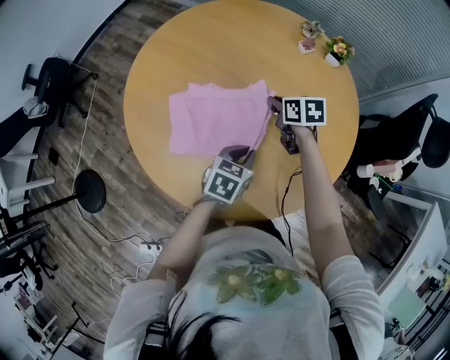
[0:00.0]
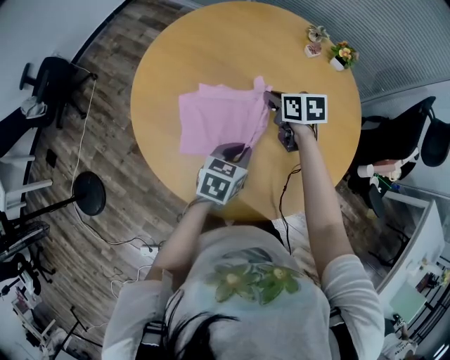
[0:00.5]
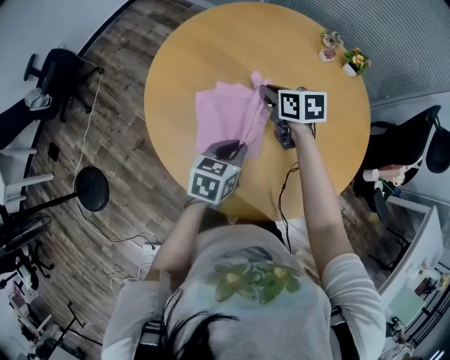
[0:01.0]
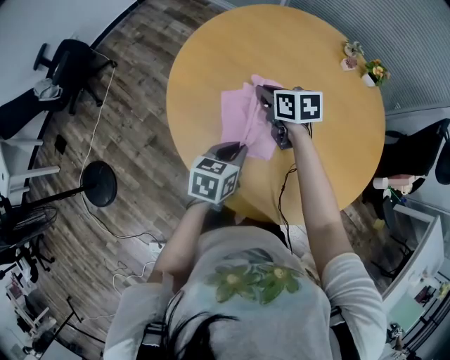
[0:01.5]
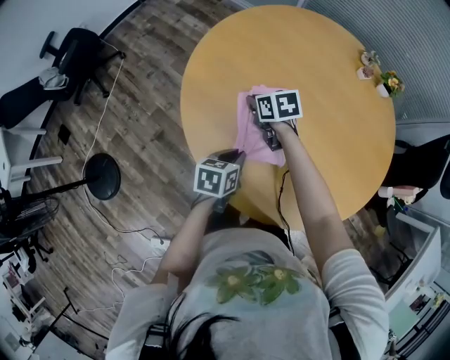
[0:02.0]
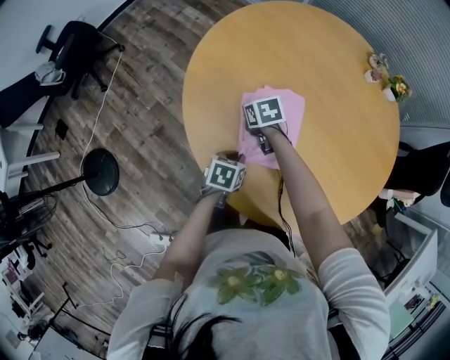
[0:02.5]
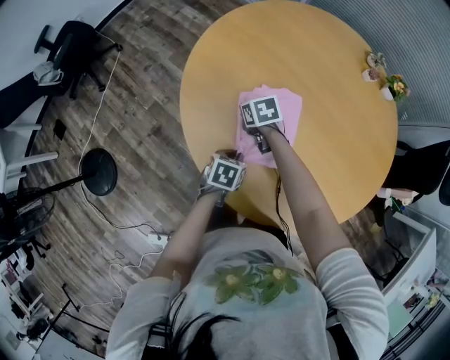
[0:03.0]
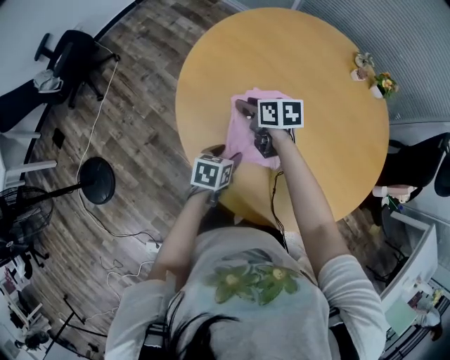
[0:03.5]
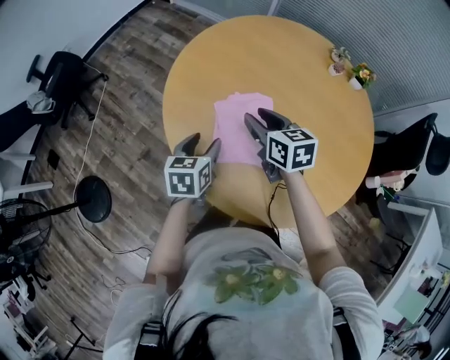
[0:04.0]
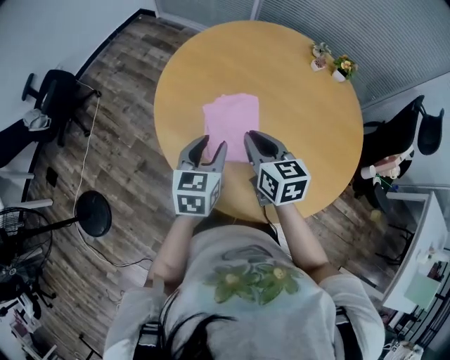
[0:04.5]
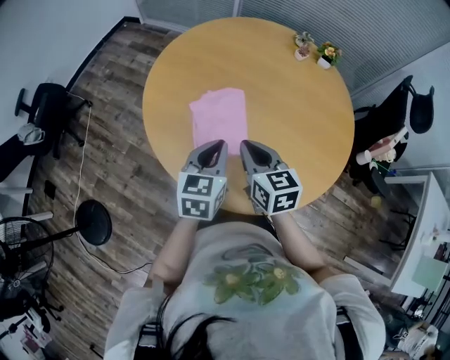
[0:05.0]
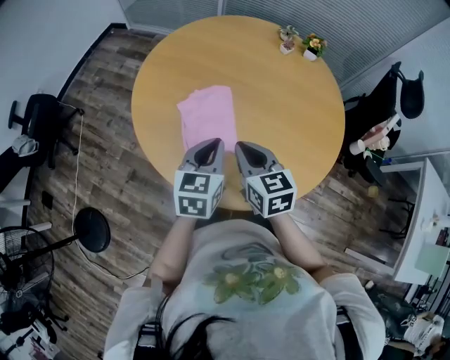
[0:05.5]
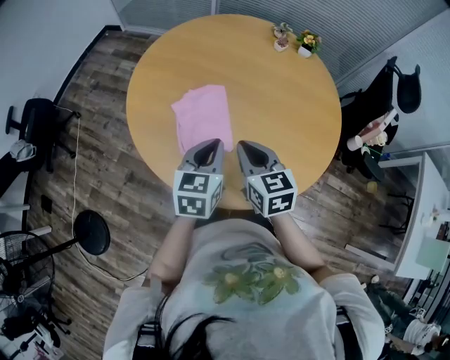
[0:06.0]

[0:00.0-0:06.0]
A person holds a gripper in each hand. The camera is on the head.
0.0 to 2.0 s: The two grippers go roughly 30 cm to the left. The left gripper swivels approximately 20 degrees.
2.0 to 4.0 s: The right gripper travels upward, backward and to the right by roughly 15 cm, rotates roughly 20 degrees, and opens up. The left gripper travels upward by approximately 10 cm, and opens up.
4.0 to 6.0 s: The right gripper is displaced backward and to the right by roughly 15 cm, and closes up. The left gripper goes roughly 15 cm to the right, upward and backward, rotates some 20 degrees, and closes its fingers.

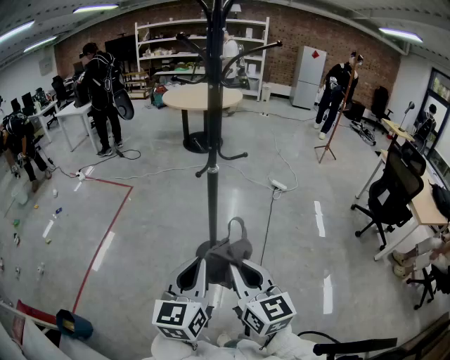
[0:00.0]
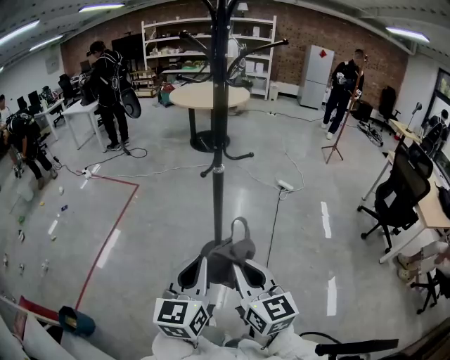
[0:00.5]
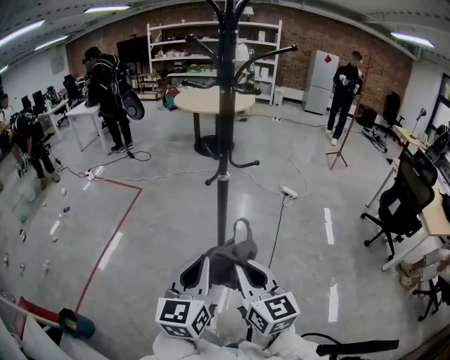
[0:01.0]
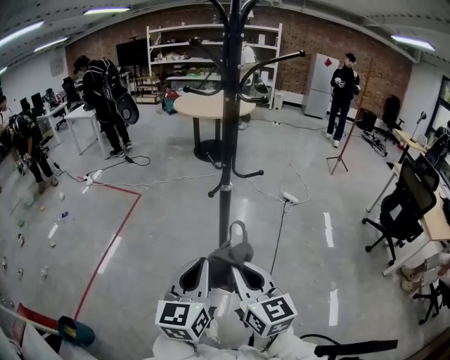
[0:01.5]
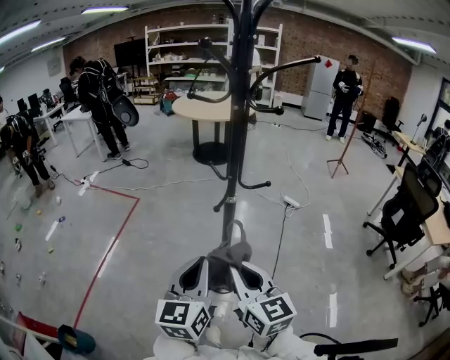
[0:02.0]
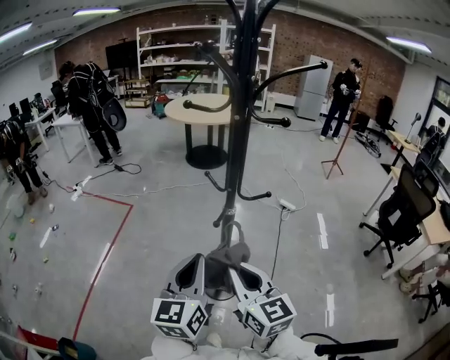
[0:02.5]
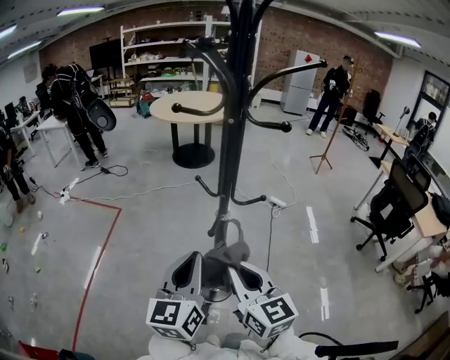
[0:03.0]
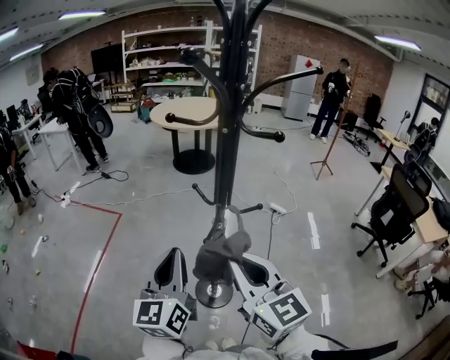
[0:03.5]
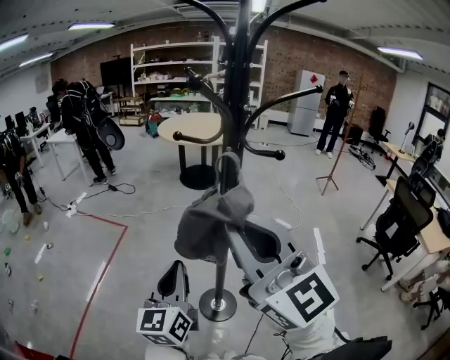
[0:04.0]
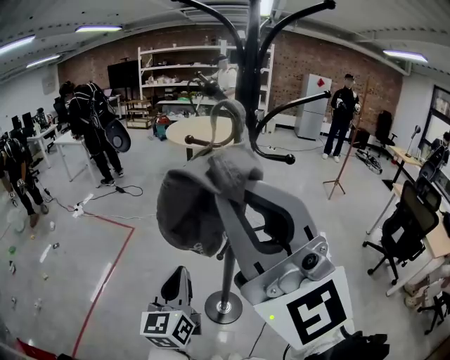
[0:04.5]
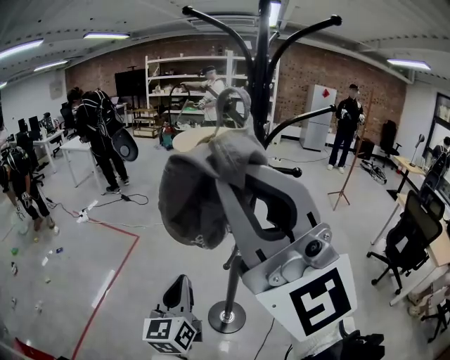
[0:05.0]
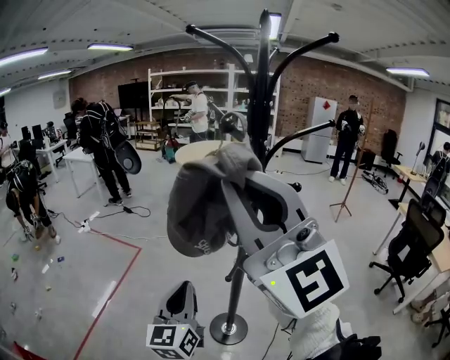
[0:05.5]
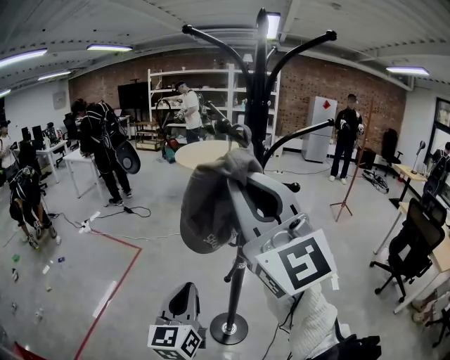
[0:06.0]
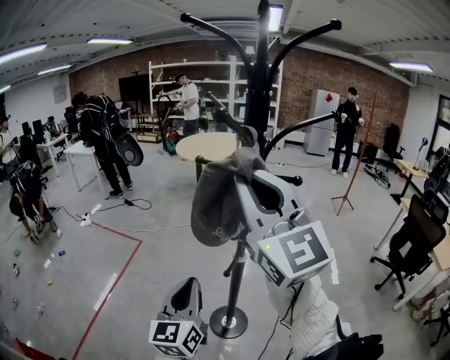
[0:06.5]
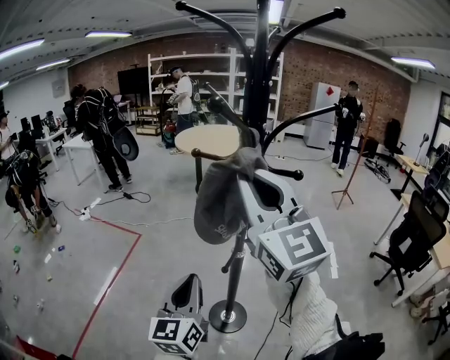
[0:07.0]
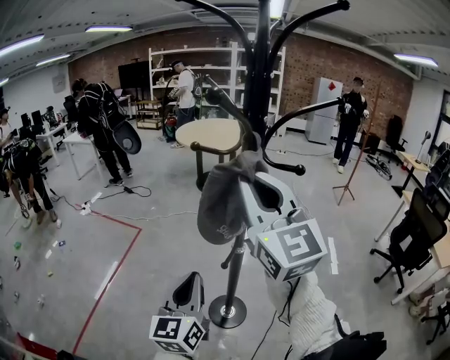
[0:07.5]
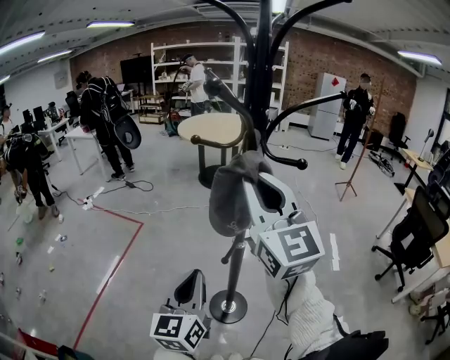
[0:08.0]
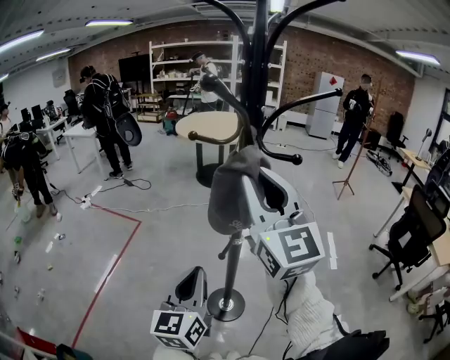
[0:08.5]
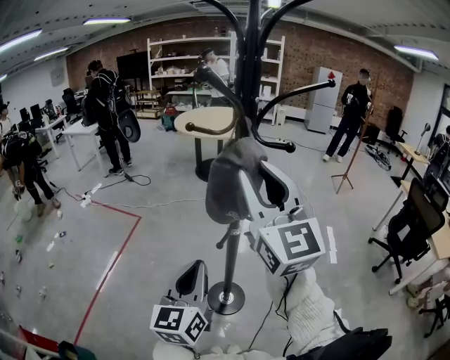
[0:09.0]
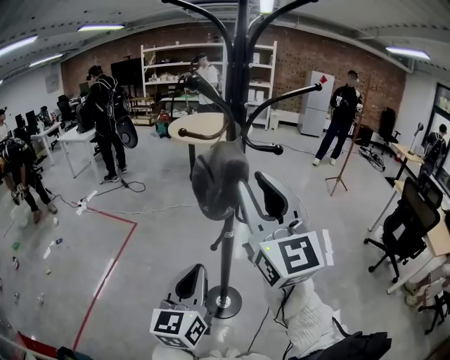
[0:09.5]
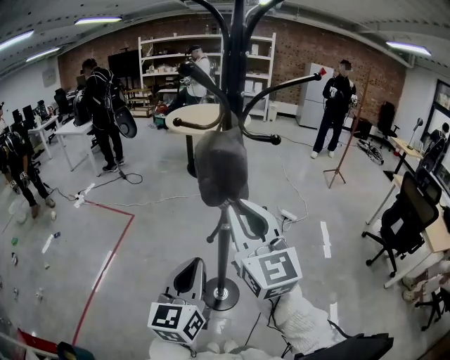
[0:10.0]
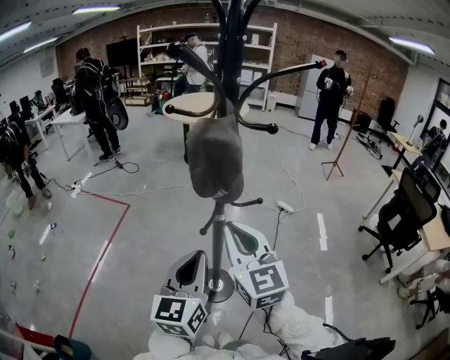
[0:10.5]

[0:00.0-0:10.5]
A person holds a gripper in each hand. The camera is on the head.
0.0 to 2.0 s: The grippers both shift forward by approximately 15 cm.
2.0 to 4.0 s: The right gripper heads upward, covering approximately 25 cm, and changes its angle by roughly 30 degrees. The left gripper shifts about 10 cm forward.
4.0 to 6.5 s: The right gripper shifts some 10 cm forward and upward.
6.5 to 8.5 s: The right gripper heads downward, covering approximately 5 cm.
8.5 to 10.5 s: The left gripper moves to the right, some 5 cm; the right gripper moves downward, about 15 cm.

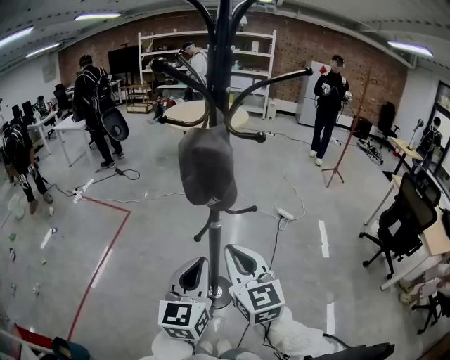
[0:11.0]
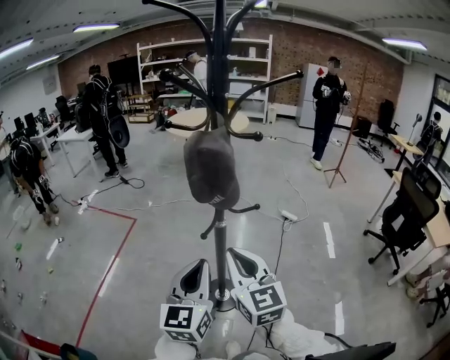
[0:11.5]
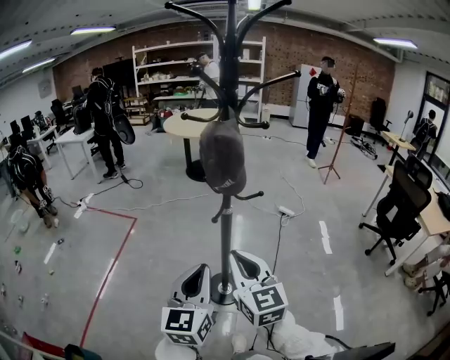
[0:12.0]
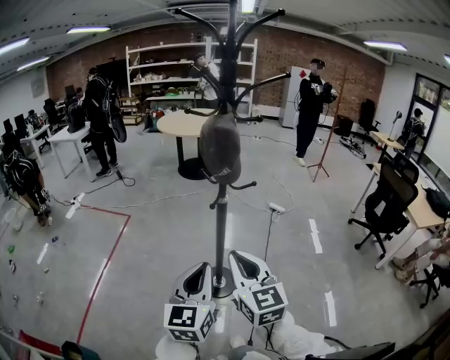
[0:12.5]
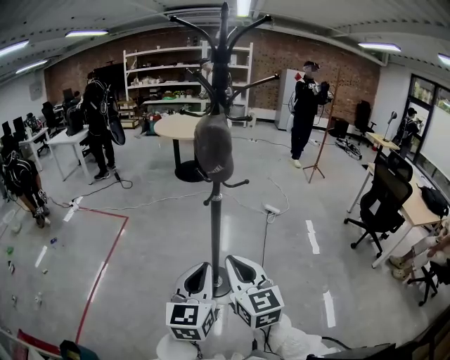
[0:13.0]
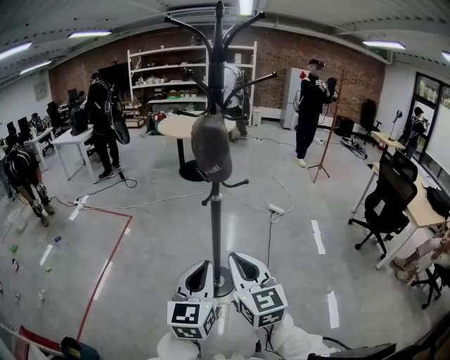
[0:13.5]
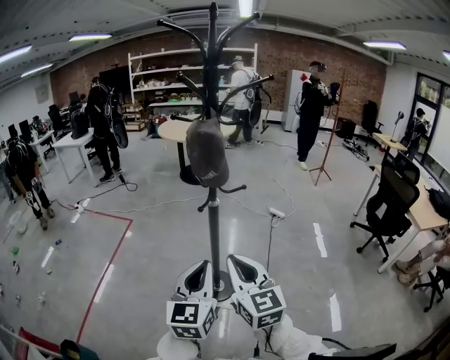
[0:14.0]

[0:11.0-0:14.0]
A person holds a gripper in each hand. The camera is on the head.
11.0 to 12.5 s: The two grippers go approximately 15 cm backward.
12.5 to 14.0 s: The grippers stay close to where they were, moving slightly.

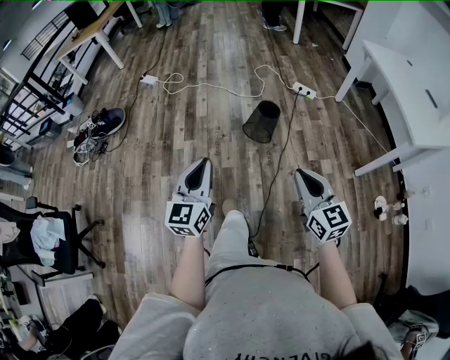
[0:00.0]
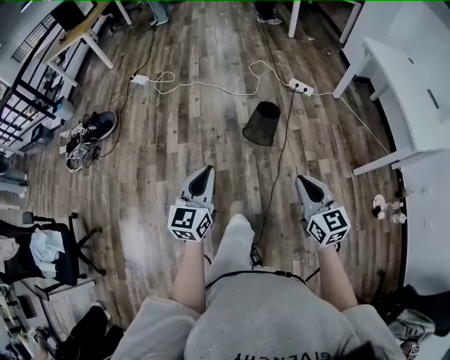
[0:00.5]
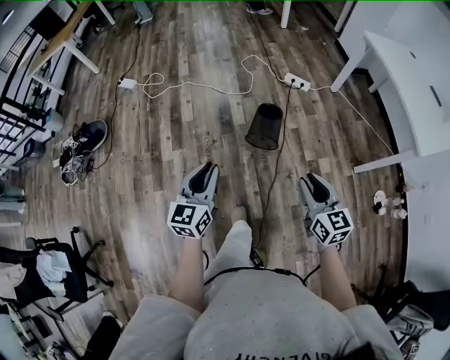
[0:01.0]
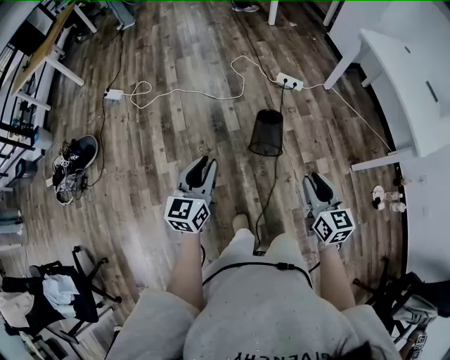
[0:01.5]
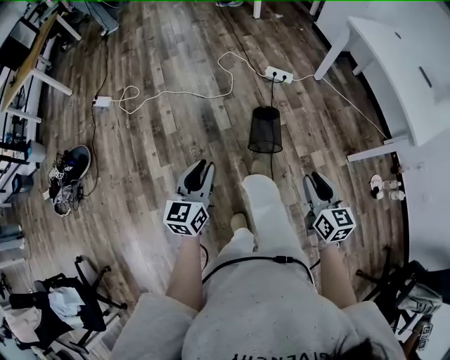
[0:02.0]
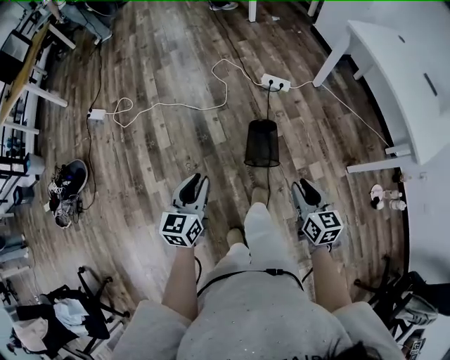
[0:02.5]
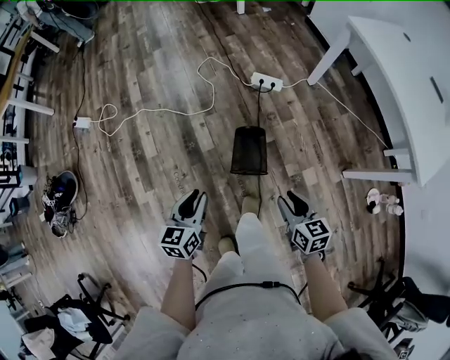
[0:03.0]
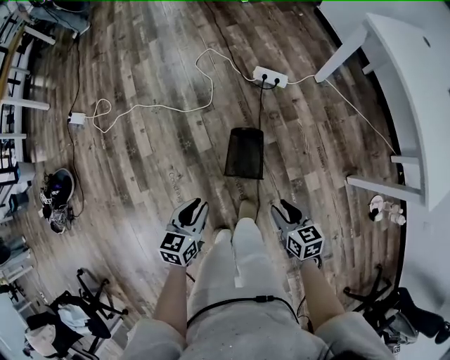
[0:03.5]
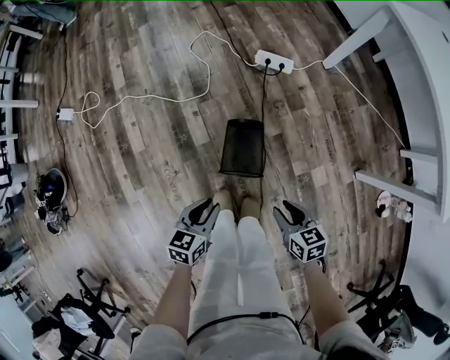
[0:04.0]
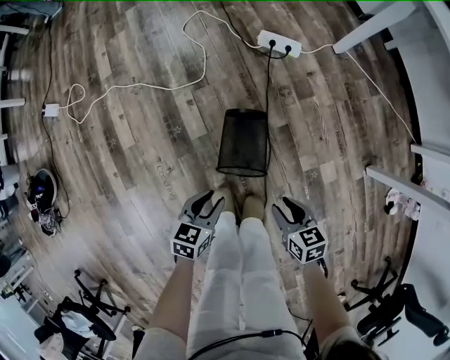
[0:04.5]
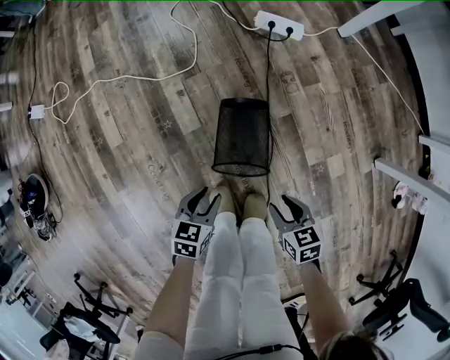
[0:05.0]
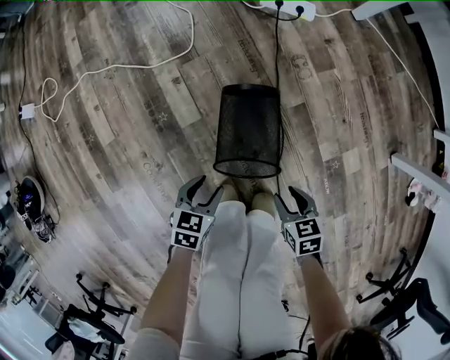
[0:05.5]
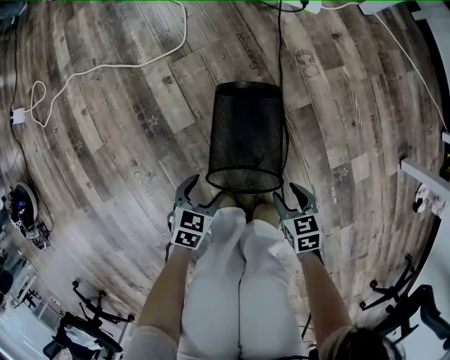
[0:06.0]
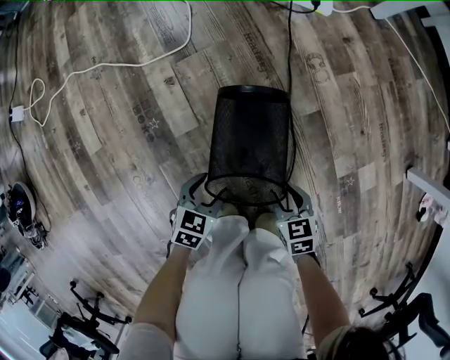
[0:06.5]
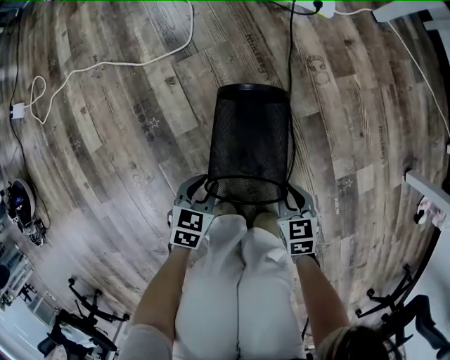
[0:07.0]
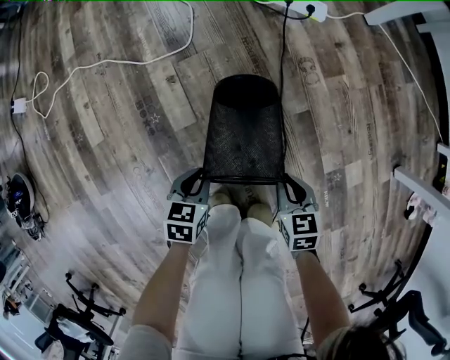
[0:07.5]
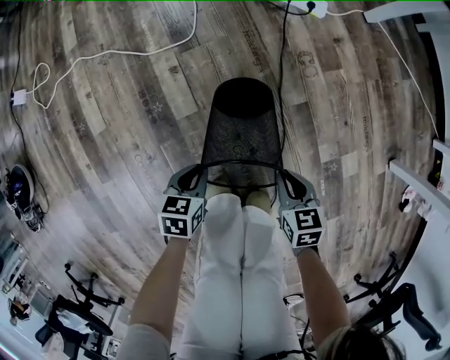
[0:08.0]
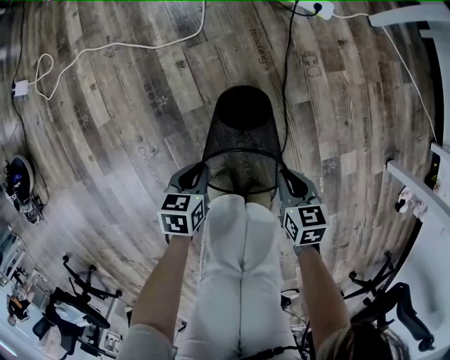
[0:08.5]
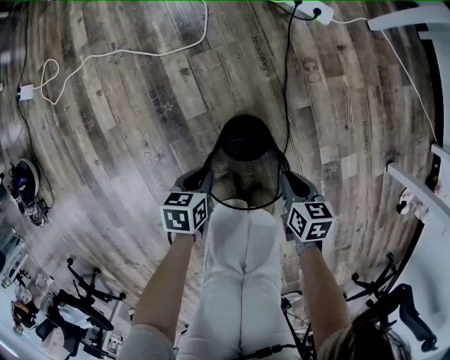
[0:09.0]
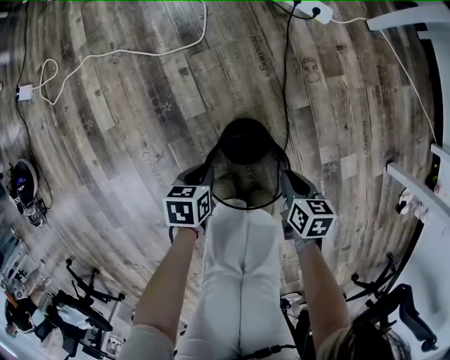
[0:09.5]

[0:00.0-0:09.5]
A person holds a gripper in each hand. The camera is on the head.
0.0 to 2.0 s: Both grippers move forward, some 30 cm. The left gripper turns by roughly 20 degrees. The right gripper turns by some 30 degrees, and opens.
2.0 to 4.0 s: The right gripper moves downward and forward, about 40 cm, and turns by about 30 degrees, while the left gripper heads downward, forward and to the right, covering approximately 40 cm, and swivels approximately 30 degrees.
4.0 to 5.5 s: Both grippers move downward, approximately 35 cm.
5.5 to 7.5 s: The right gripper goes approximately 10 cm forward, travels downward and back again, some 15 cm each way, and closes its fingers. The left gripper shifts about 5 cm downward, and closes.
7.5 to 9.5 s: The grippers both shift upward by some 5 cm. The right gripper swivels some 20 degrees.
